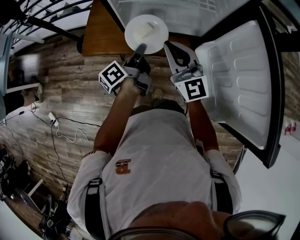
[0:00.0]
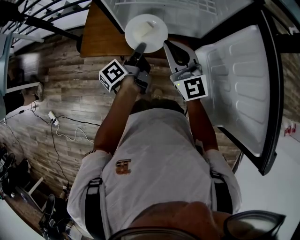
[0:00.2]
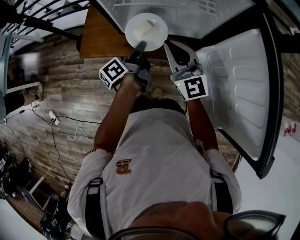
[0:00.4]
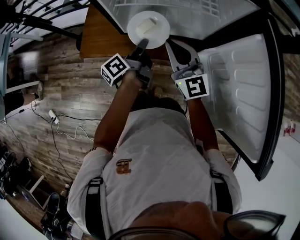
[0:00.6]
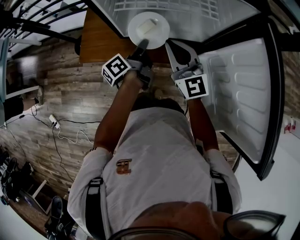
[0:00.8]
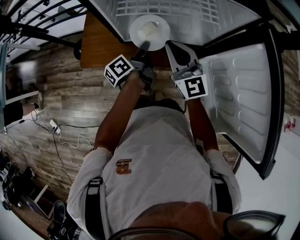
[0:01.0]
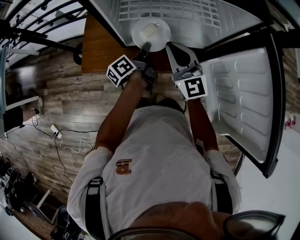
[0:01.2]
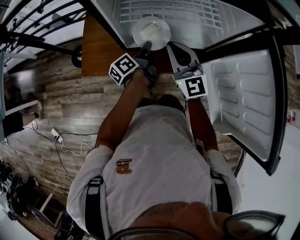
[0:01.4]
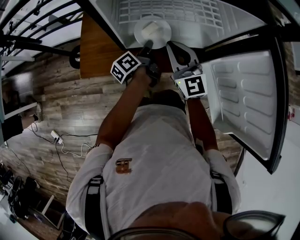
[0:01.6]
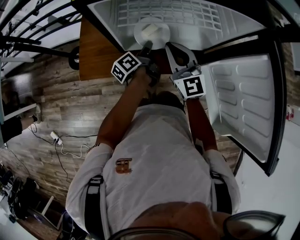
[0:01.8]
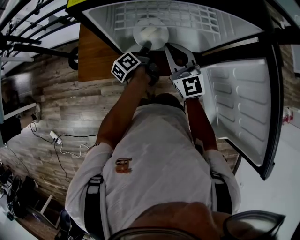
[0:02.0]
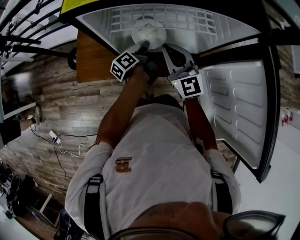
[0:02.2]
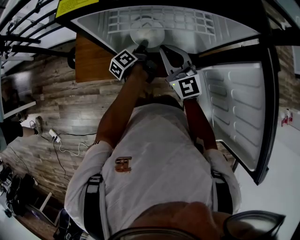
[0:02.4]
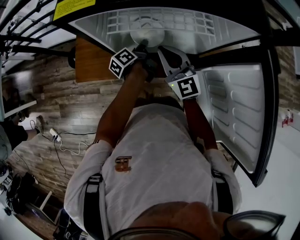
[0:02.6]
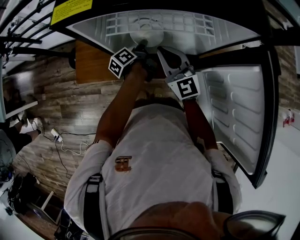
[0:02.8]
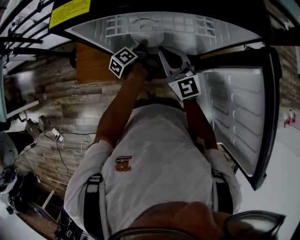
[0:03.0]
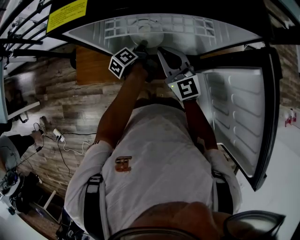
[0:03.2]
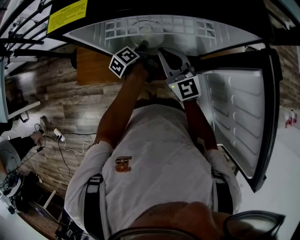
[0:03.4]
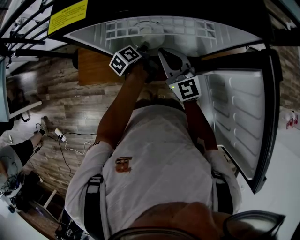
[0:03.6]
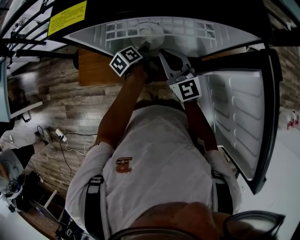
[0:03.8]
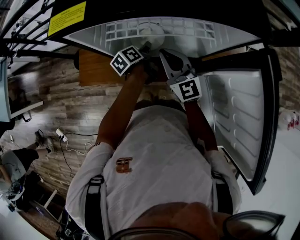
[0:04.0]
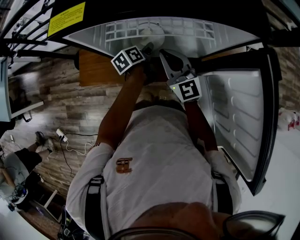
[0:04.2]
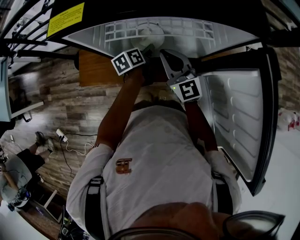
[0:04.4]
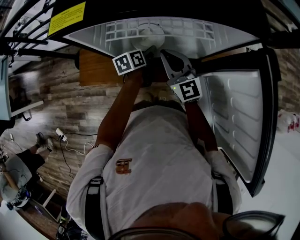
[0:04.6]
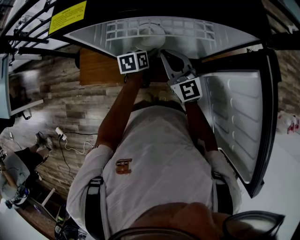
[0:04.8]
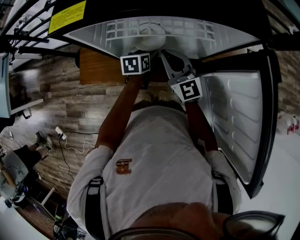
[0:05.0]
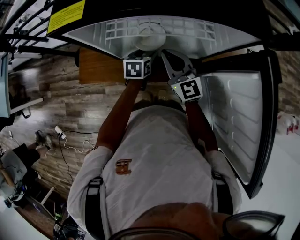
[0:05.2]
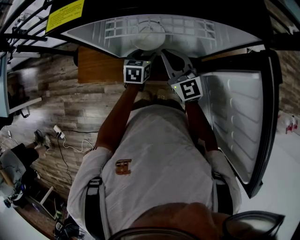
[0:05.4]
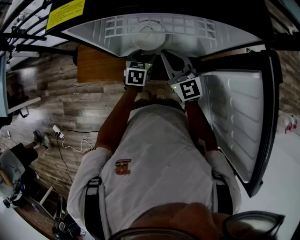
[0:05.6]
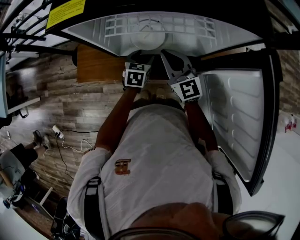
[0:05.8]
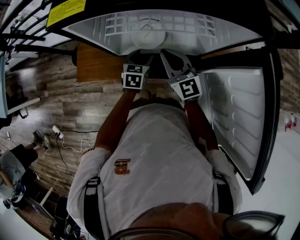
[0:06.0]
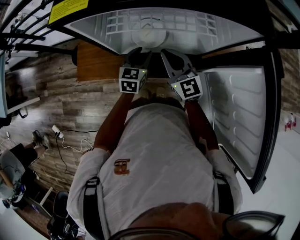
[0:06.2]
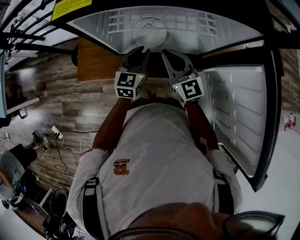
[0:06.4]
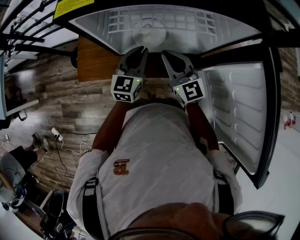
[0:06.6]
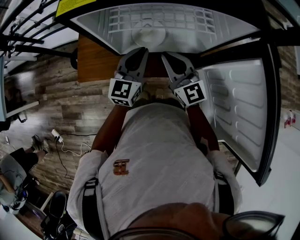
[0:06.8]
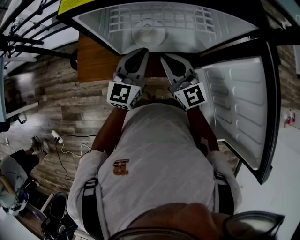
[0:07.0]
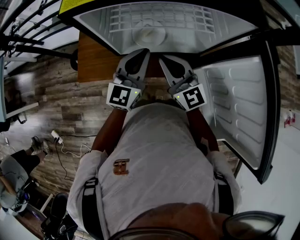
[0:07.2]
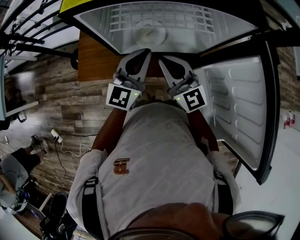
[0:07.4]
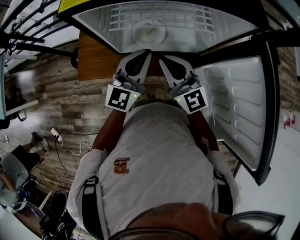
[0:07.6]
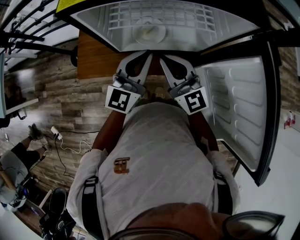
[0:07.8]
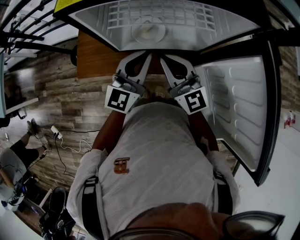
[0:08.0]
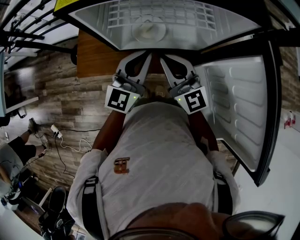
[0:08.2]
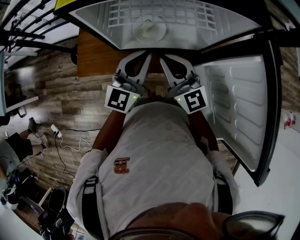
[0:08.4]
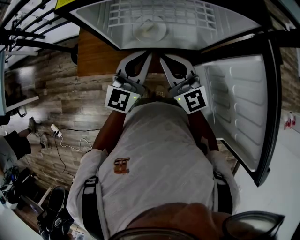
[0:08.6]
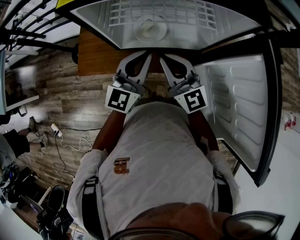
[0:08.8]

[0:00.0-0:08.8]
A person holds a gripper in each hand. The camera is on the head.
0.0 to 1.4 s: The left gripper shifts roughly 15 cm forward and downward. Meanwhile the right gripper heads forward, covering approximately 10 cm.
1.4 to 3.0 s: The right gripper heads forward, covering approximately 5 cm; the left gripper goes approximately 10 cm forward and downward.
3.0 to 4.4 s: The left gripper swivels roughly 30 degrees, and opens its fingers.
4.4 to 5.8 s: The left gripper rotates around the line of its fingers by approximately 50 degrees, clockwise from behind.
5.8 to 7.4 s: The right gripper moves upward and backward, about 10 cm; the left gripper shifts some 20 cm upward, angles its fingers upward, by approximately 50 degrees, and closes up.
7.4 to 8.8 s: The grippers make only small movements.

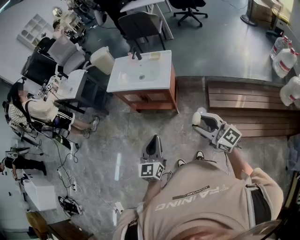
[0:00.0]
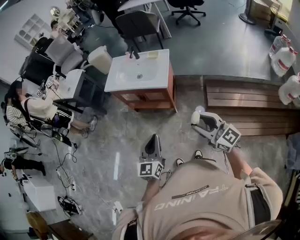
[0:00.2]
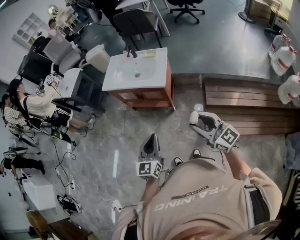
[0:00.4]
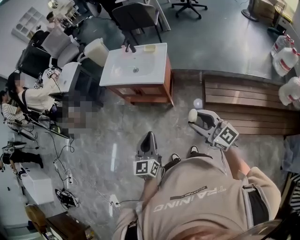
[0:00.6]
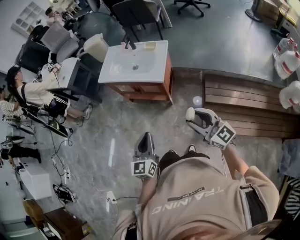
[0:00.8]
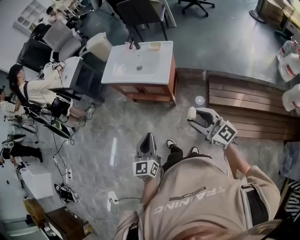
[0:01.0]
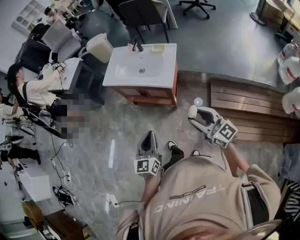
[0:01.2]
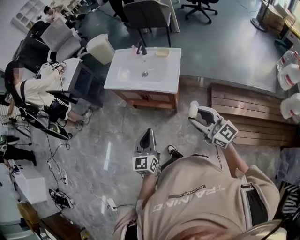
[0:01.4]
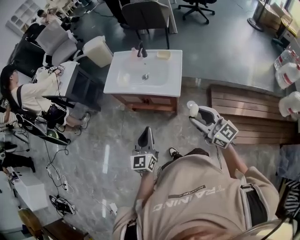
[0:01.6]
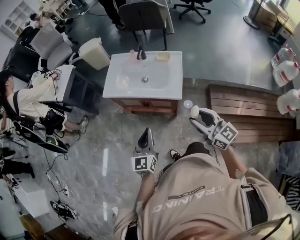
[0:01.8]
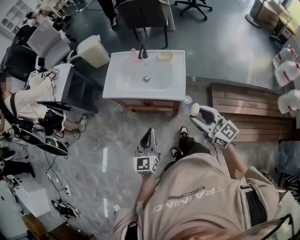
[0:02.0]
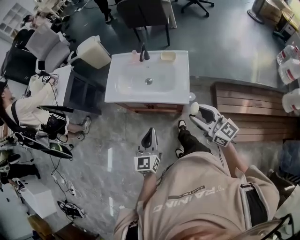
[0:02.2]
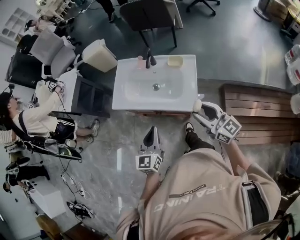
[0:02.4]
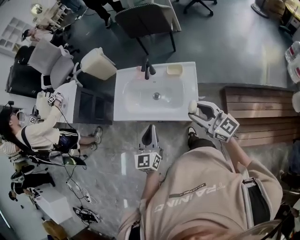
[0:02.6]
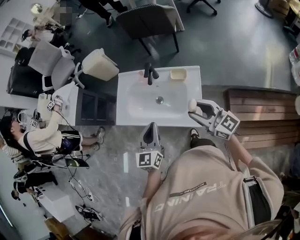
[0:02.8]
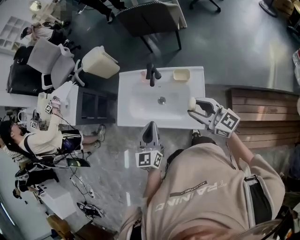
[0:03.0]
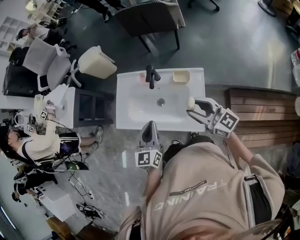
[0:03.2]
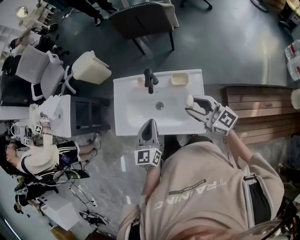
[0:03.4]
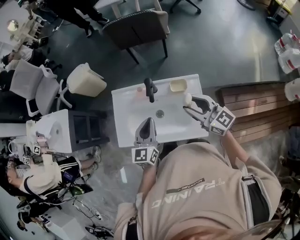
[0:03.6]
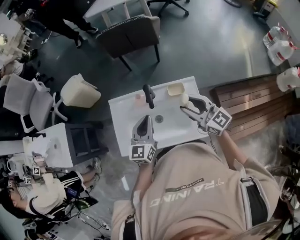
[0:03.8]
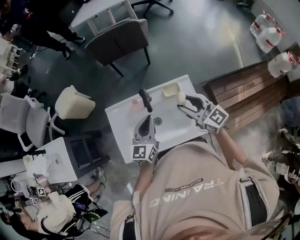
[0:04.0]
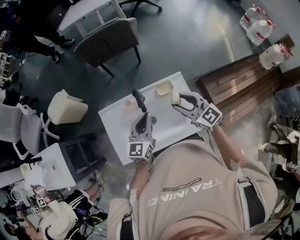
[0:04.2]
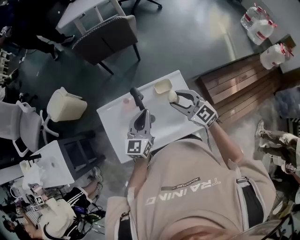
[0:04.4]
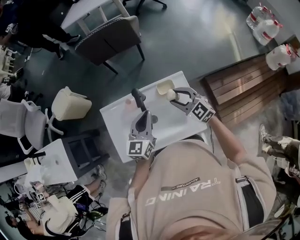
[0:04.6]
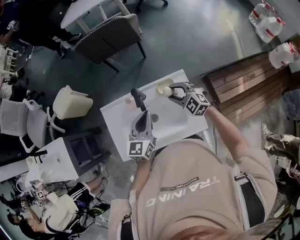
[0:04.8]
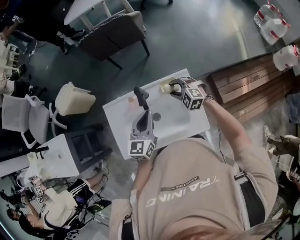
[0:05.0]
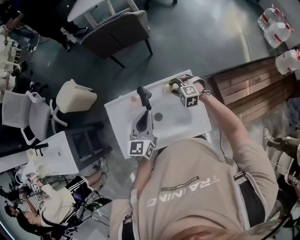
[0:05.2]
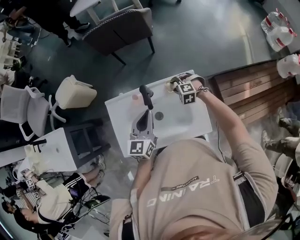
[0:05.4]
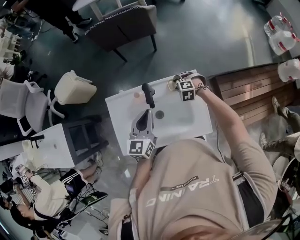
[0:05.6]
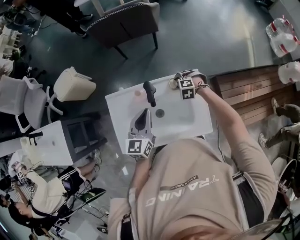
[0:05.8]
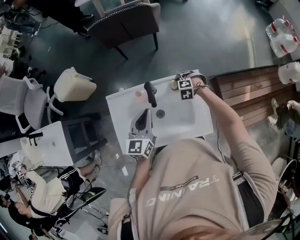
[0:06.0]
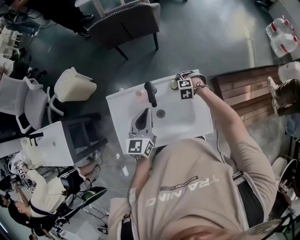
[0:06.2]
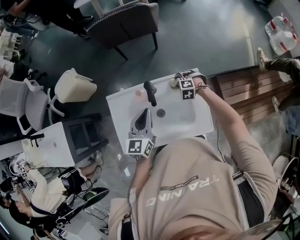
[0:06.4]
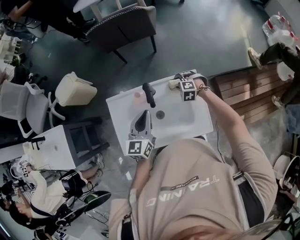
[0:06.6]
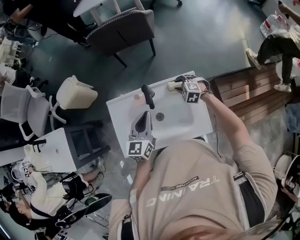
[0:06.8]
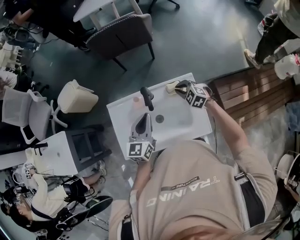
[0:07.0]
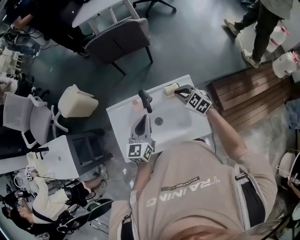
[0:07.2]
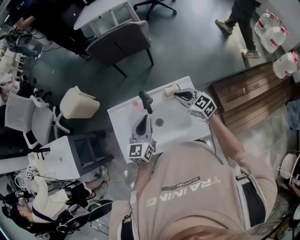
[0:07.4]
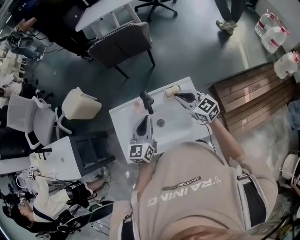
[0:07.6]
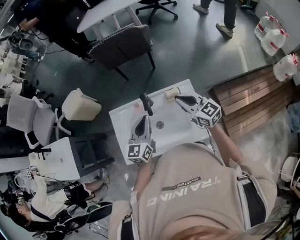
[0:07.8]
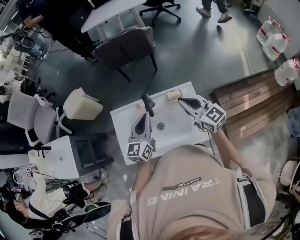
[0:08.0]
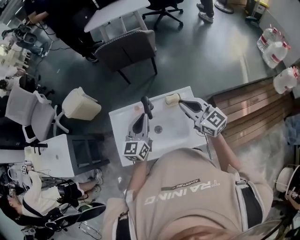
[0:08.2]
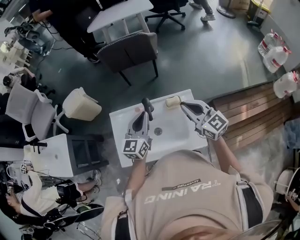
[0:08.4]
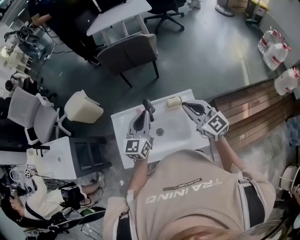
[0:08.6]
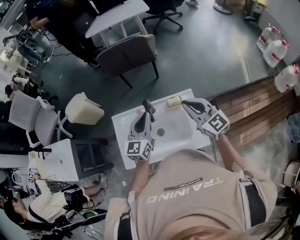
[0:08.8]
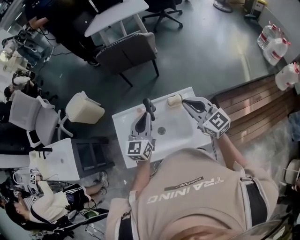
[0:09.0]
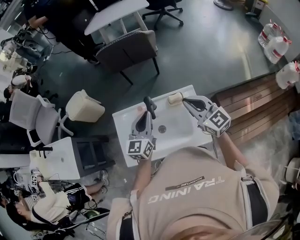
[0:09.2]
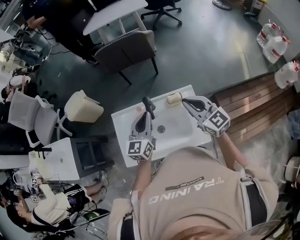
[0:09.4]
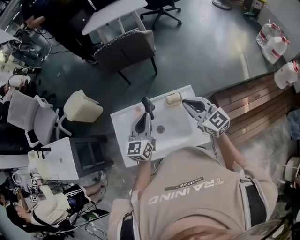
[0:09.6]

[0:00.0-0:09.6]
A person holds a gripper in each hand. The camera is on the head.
0.0 to 1.6 s: Both grippers move forward, some 20 cm.
1.6 to 3.2 s: The grippers both shift forward by approximately 35 cm.
3.2 to 4.8 s: The right gripper ends up roughly 20 cm from where it was, and angles its fingers downward, by some 30 degrees. Meanwhile the left gripper ends up about 15 cm from where it was, and turns by roughly 30 degrees.
4.8 to 6.4 s: The left gripper shifts roughly 5 cm to the left; the right gripper goes roughly 15 cm downward and forward, and tilts its fingers roughly 40 degrees downward.
6.4 to 8.0 s: The right gripper shifts about 30 cm upward, tips its fingers upward by about 60 degrees, and closes up, while the left gripper moves upward, about 5 cm.
8.0 to 9.6 s: The grippers move only a little.

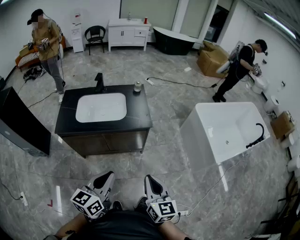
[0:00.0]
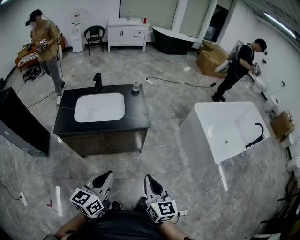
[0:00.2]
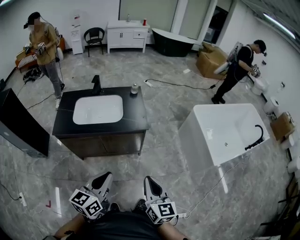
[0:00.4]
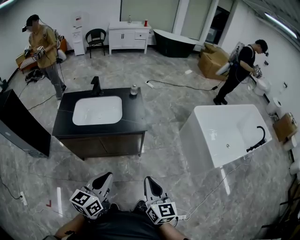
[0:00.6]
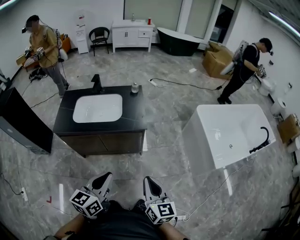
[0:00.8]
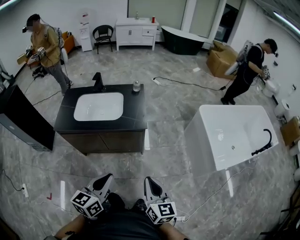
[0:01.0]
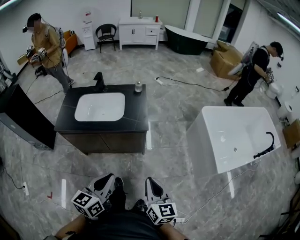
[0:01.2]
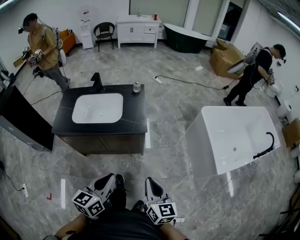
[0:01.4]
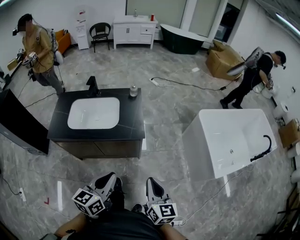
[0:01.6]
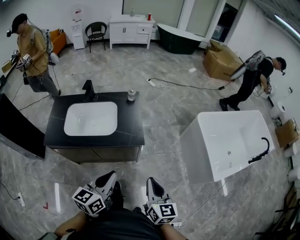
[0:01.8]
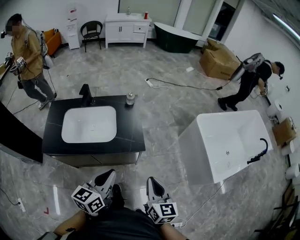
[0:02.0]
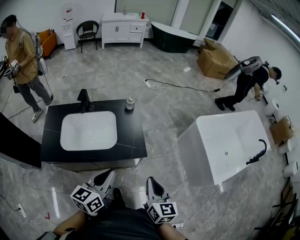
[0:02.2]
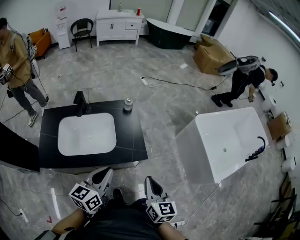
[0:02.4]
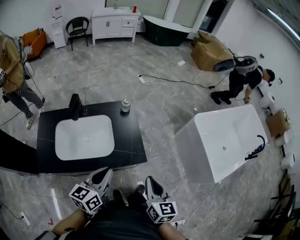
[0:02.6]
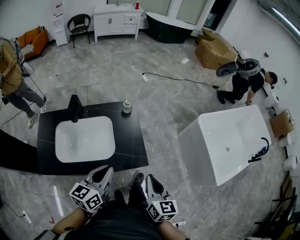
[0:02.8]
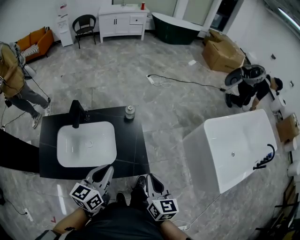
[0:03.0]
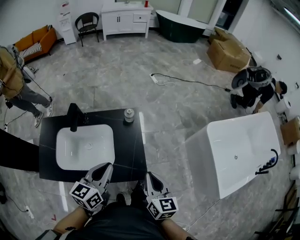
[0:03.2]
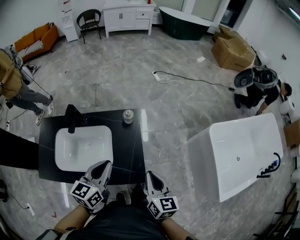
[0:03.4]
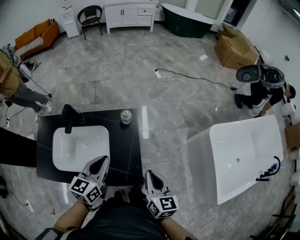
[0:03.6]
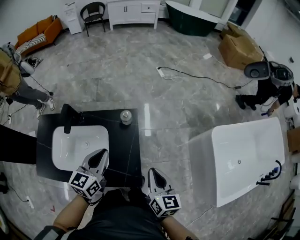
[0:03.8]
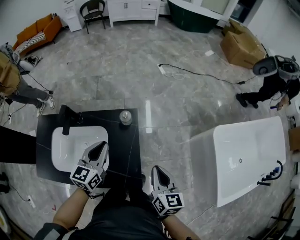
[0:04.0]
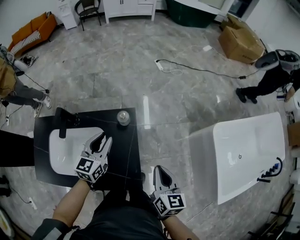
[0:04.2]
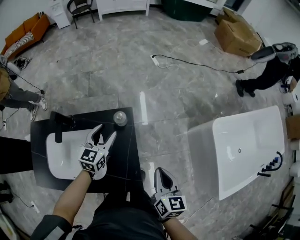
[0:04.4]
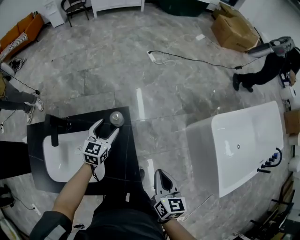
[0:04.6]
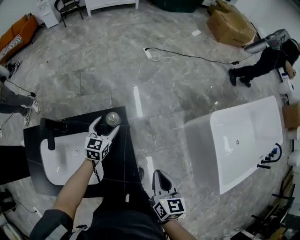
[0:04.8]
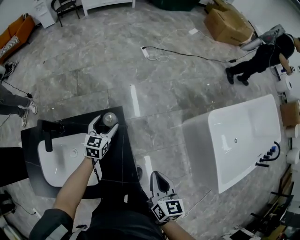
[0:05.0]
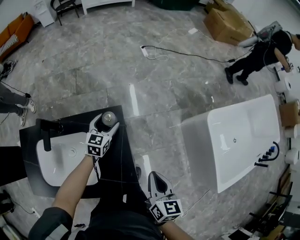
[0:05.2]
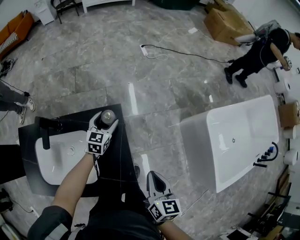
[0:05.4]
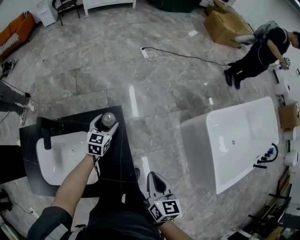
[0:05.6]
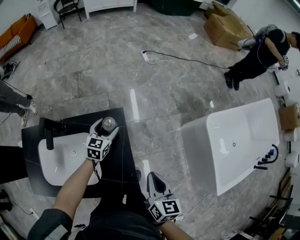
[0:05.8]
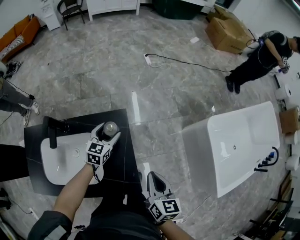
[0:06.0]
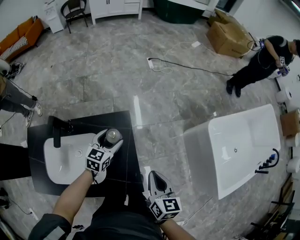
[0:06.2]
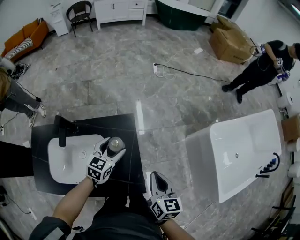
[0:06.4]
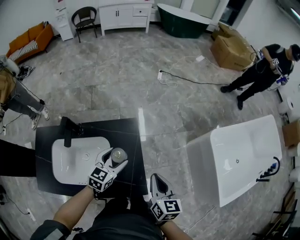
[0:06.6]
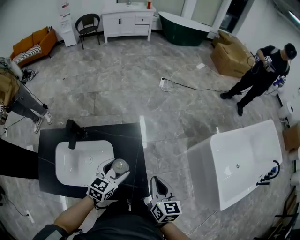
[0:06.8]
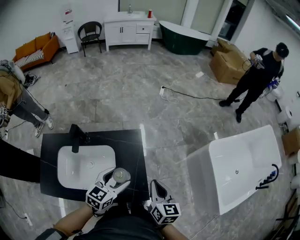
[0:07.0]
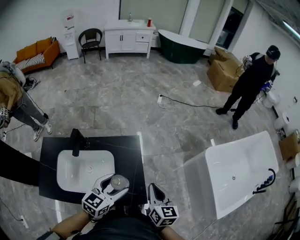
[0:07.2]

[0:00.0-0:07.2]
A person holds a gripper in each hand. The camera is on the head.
0.0 to 1.4 s: Both grippers move to the right and forward, some 10 cm.
1.4 to 2.8 s: The two grippers go about 30 cm forward.
2.8 to 4.4 s: Both grippers travel together forward, approximately 30 cm. The left gripper rotates about 20 degrees, and opens up.
4.4 to 5.8 s: The left gripper shifts some 10 cm downward and forward.
5.8 to 7.2 s: The left gripper goes roughly 35 cm backward and upward; the right gripper is displaced upward and to the left by approximately 10 cm.
